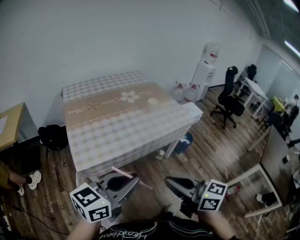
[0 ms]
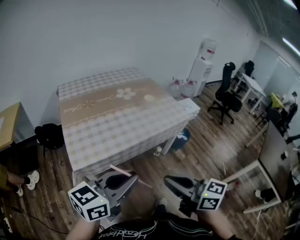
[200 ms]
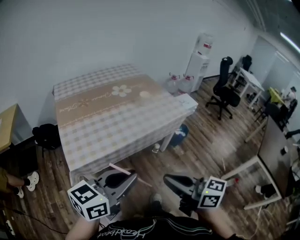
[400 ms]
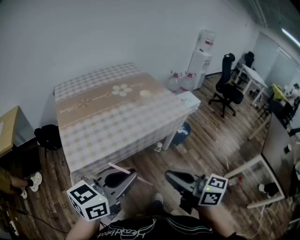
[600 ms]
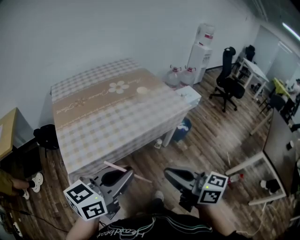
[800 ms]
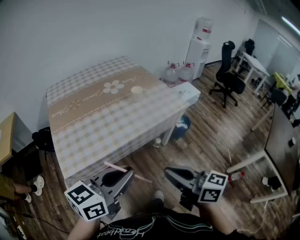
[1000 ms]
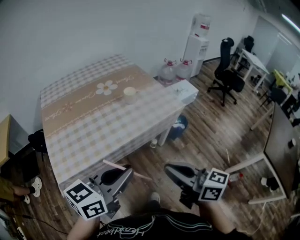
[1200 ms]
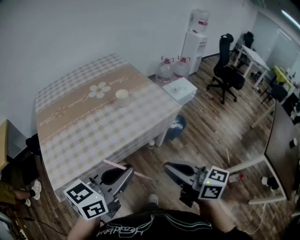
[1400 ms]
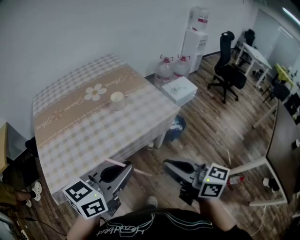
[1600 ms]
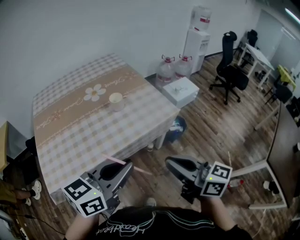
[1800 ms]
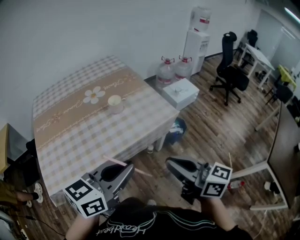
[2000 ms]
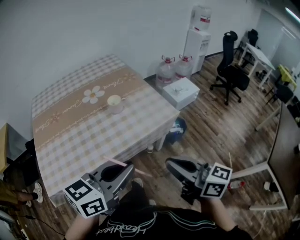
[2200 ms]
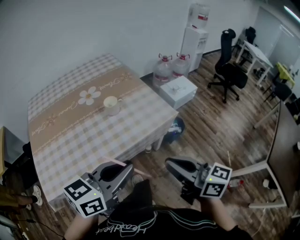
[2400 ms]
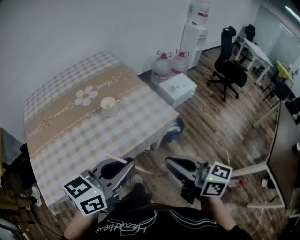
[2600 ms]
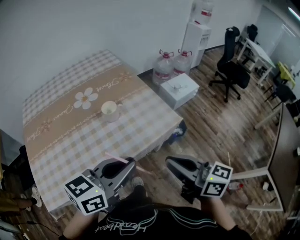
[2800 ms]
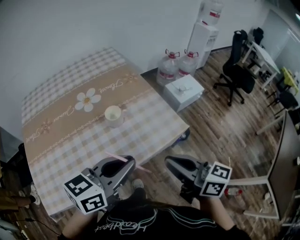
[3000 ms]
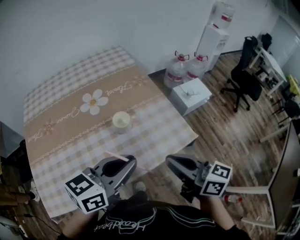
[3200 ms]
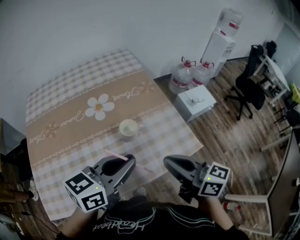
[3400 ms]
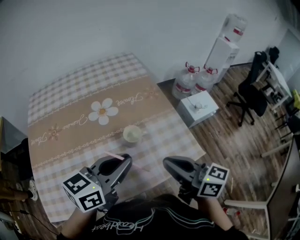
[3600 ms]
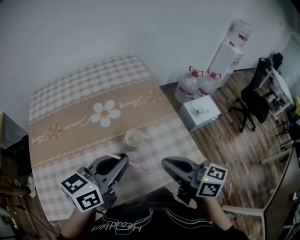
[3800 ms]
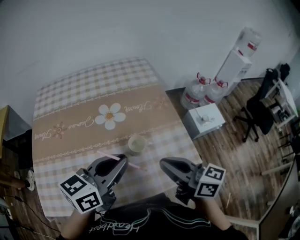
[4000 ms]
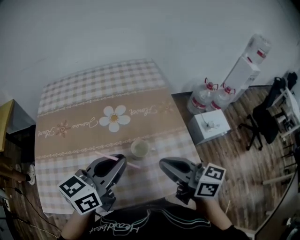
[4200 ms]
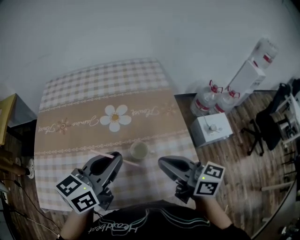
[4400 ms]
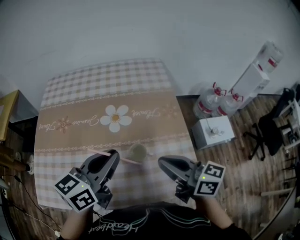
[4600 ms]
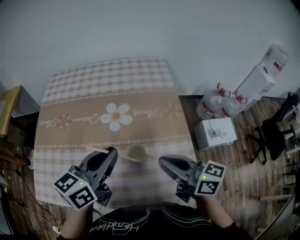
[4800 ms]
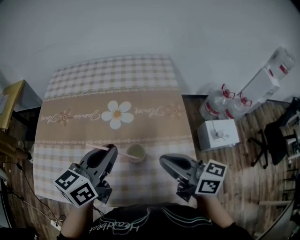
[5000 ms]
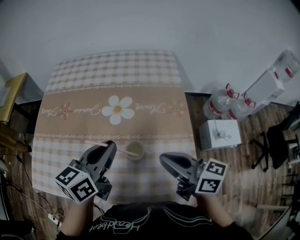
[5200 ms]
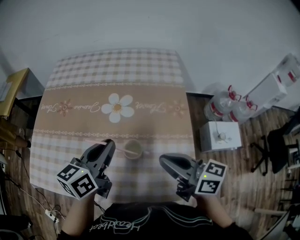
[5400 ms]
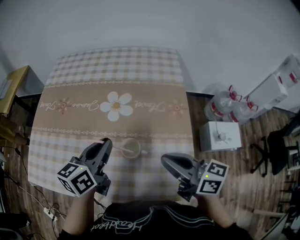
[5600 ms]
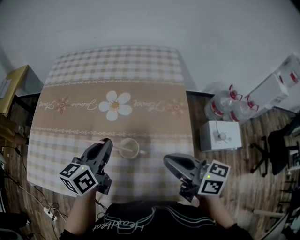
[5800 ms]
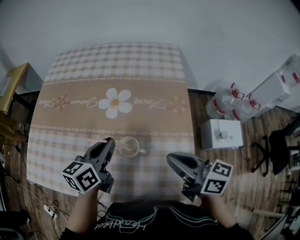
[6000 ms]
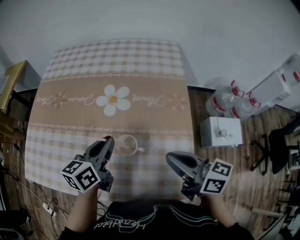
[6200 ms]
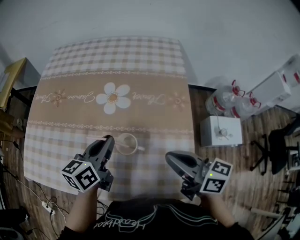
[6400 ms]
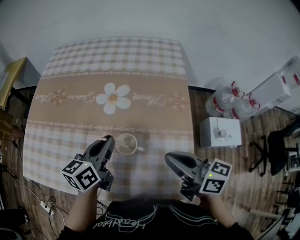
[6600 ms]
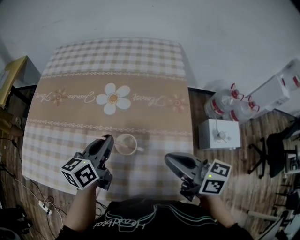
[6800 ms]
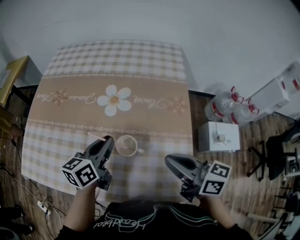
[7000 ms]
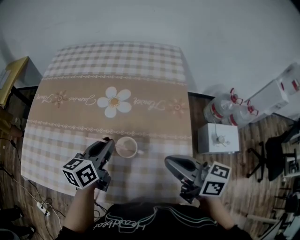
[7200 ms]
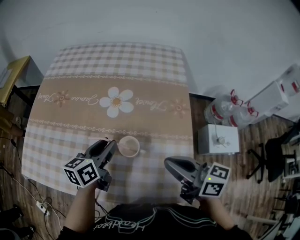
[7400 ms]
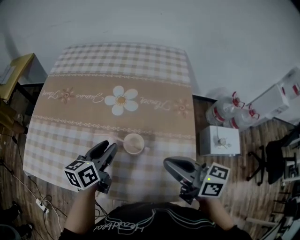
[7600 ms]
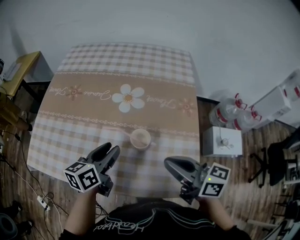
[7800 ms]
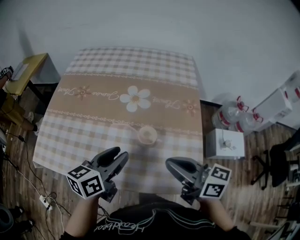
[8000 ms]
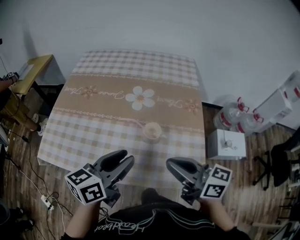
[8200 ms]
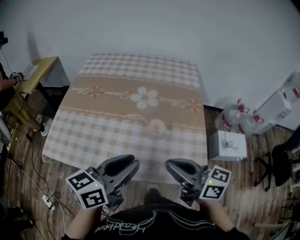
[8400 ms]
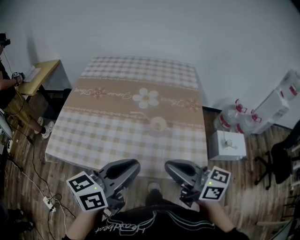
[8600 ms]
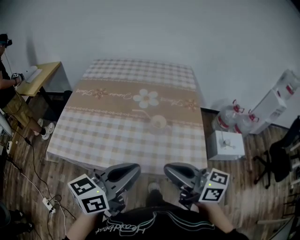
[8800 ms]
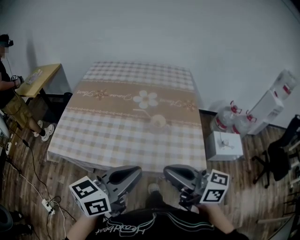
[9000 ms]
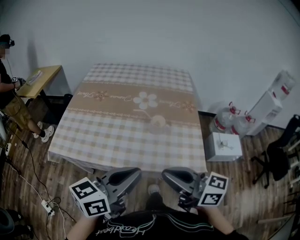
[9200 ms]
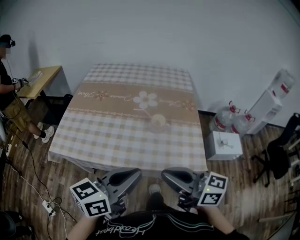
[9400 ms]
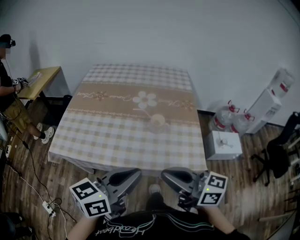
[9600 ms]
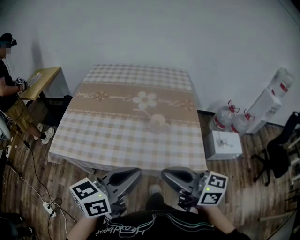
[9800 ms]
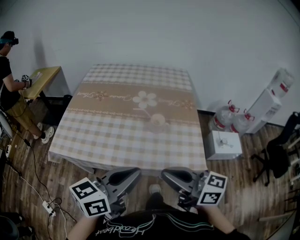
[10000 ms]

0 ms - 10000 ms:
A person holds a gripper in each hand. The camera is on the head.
0 ms - 1400 ms: The right gripper heads to the right and forward, covering roughly 25 cm. Meanwhile the left gripper heads forward and to the right, covering about 25 cm.
1400 ms - 2800 ms: Both grippers travel together forward, some 20 cm.
2800 ms - 4200 ms: The right gripper goes some 25 cm forward, and changes its angle by roughly 20 degrees. Meanwhile the left gripper is displaced forward and to the left by about 25 cm, and changes its angle by roughly 30 degrees.
4200 ms - 5800 ms: The right gripper heads to the right, downward and forward, covering roughly 10 cm. Meanwhile the left gripper moves downward and forward, roughly 15 cm, and changes its angle by approximately 30 degrees.
5800 ms - 7200 ms: The left gripper moves downward, roughly 5 cm.
7200 ms - 8600 ms: The right gripper goes approximately 25 cm backward, to the left and upward. The left gripper shifts approximately 30 cm backward and upward, and opens, then closes again.
8600 ms - 10000 ms: The grippers both shift backward by approximately 10 cm.

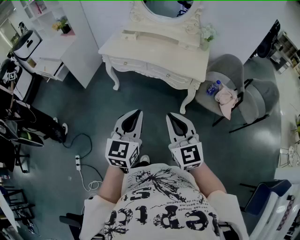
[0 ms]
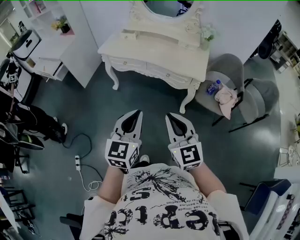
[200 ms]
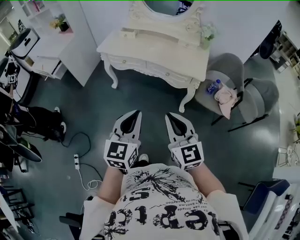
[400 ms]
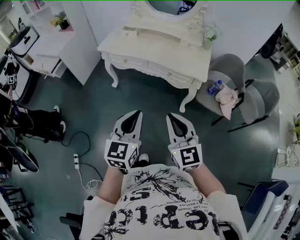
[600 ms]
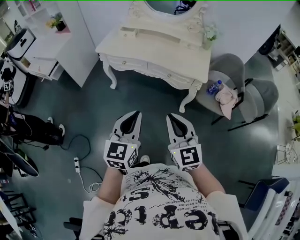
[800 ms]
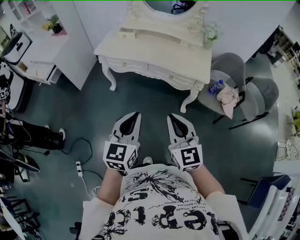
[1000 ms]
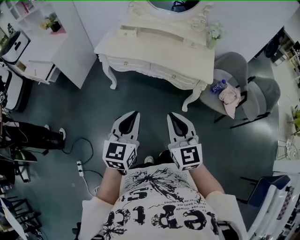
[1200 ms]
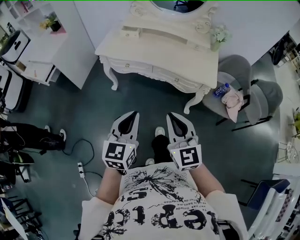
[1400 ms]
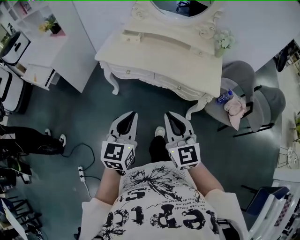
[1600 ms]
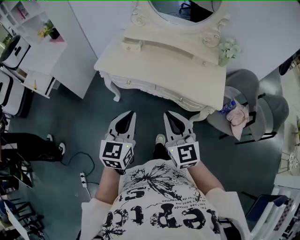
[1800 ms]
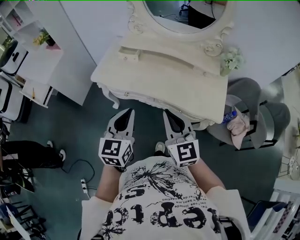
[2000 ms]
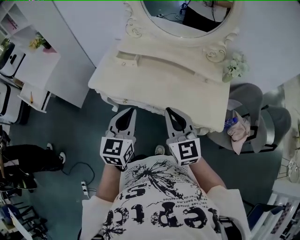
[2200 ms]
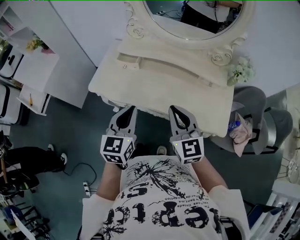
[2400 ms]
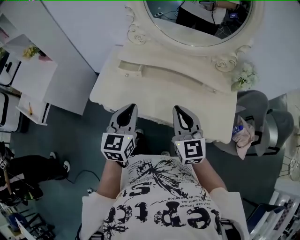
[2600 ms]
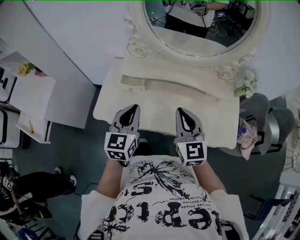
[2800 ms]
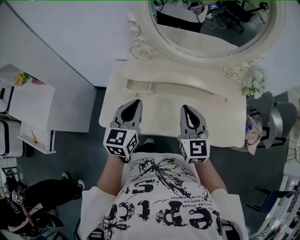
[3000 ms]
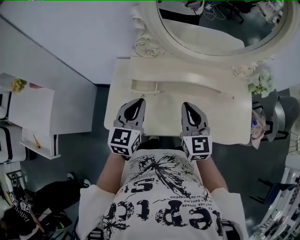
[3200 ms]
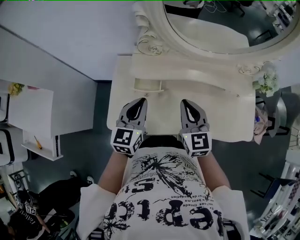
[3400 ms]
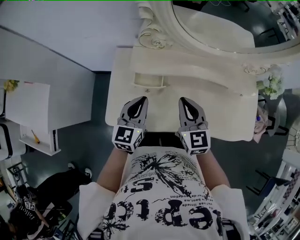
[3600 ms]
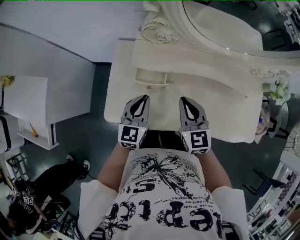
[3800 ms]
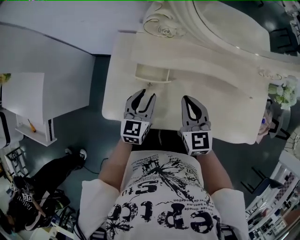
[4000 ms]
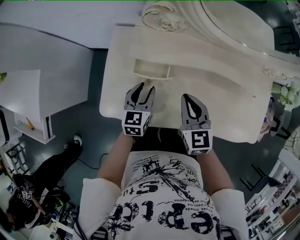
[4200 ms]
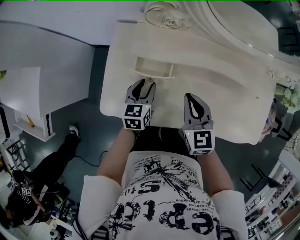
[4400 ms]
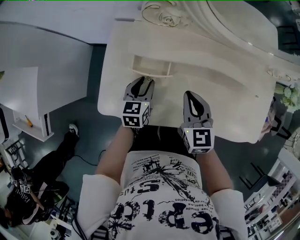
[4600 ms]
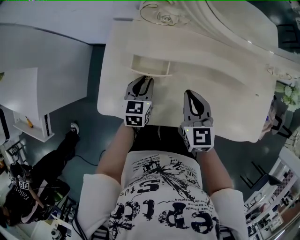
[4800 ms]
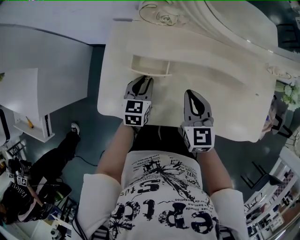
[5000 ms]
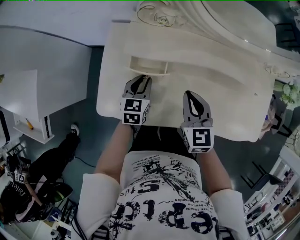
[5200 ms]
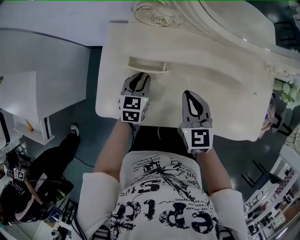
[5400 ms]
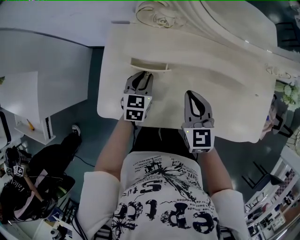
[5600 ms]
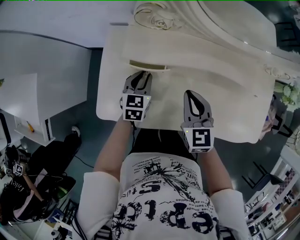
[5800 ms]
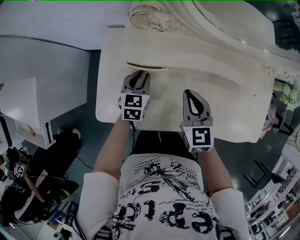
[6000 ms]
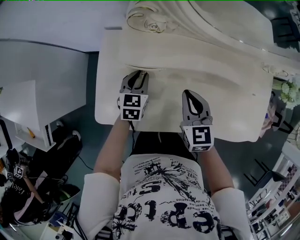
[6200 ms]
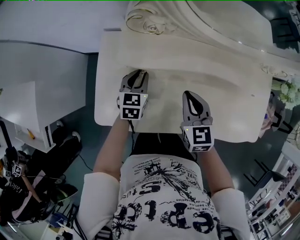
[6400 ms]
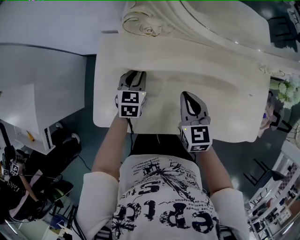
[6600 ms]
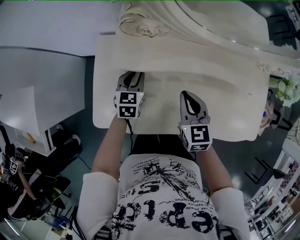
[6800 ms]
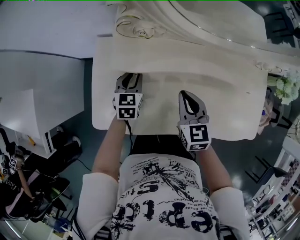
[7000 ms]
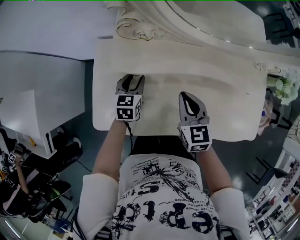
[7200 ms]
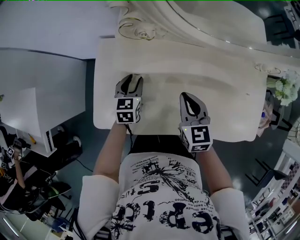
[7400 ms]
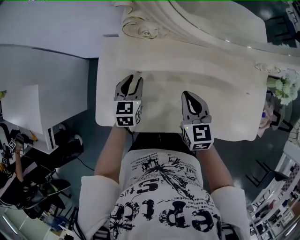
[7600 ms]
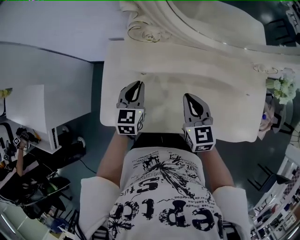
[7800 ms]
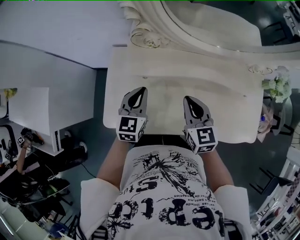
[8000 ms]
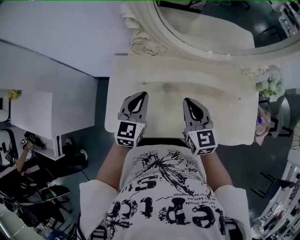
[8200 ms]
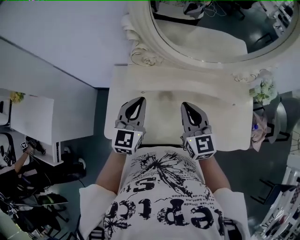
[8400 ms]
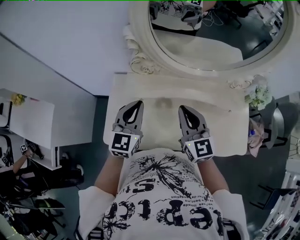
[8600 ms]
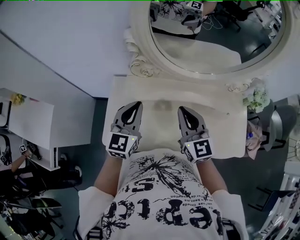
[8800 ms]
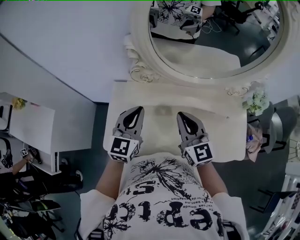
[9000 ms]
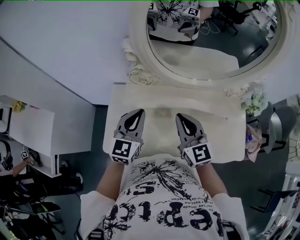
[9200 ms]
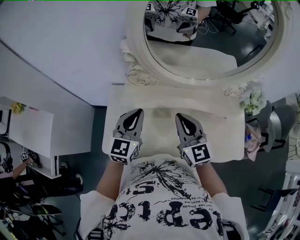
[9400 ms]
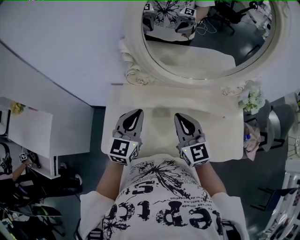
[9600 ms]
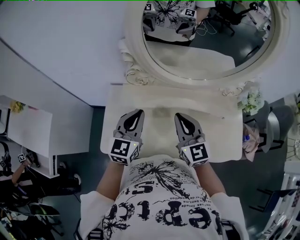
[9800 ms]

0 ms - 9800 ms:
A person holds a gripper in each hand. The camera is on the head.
0 ms - 1400 ms: The two grippers go some 15 cm forward and to the left.
1400 ms - 2800 ms: The pair of grippers is taken forward, roughly 50 cm.
2800 ms - 4200 ms: Both grippers move downward, forward and to the left, some 25 cm. The left gripper opens.
4200 ms - 5600 ms: The left gripper shifts by approximately 5 cm.
5600 ms - 7000 ms: The grippers make only small movements.
7000 ms - 8400 ms: The left gripper moves upward, about 25 cm, and swivels about 20 degrees. The right gripper heads upward, covering roughly 15 cm.
8400 ms - 9800 ms: The grippers move only a little.

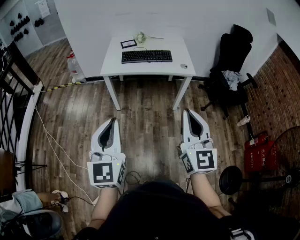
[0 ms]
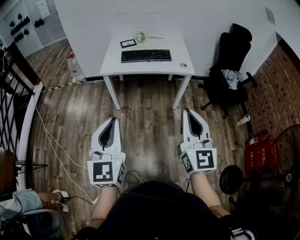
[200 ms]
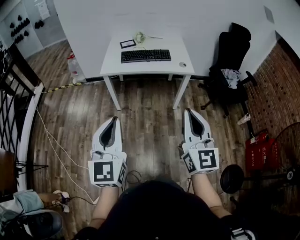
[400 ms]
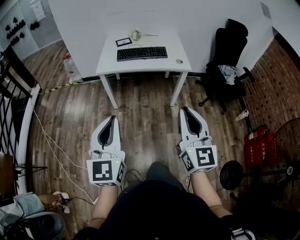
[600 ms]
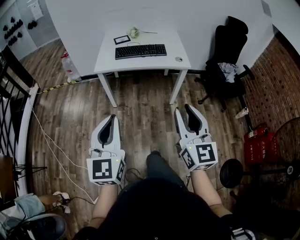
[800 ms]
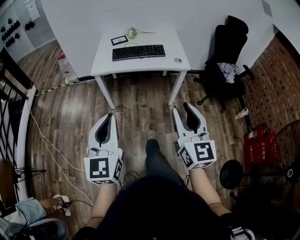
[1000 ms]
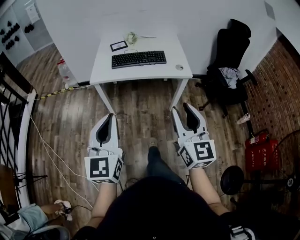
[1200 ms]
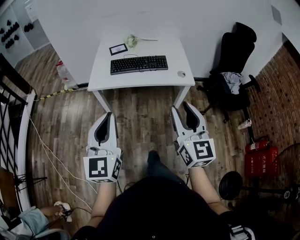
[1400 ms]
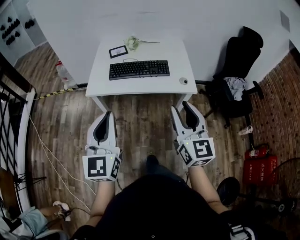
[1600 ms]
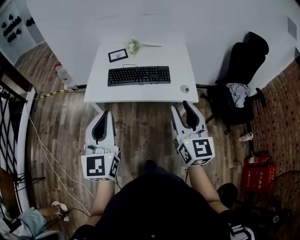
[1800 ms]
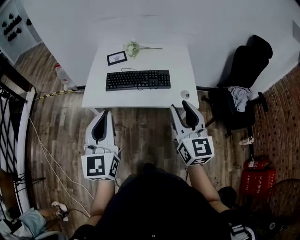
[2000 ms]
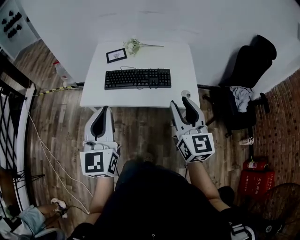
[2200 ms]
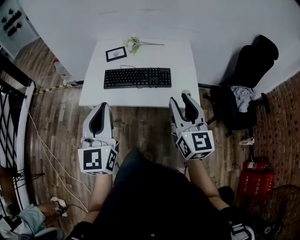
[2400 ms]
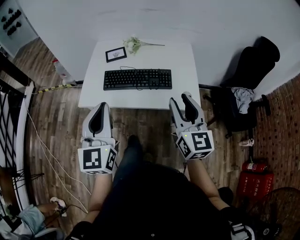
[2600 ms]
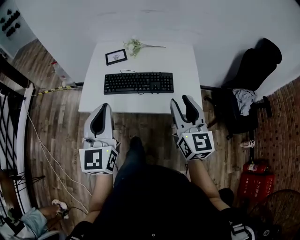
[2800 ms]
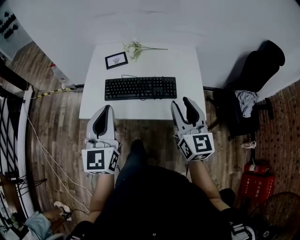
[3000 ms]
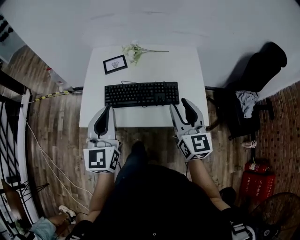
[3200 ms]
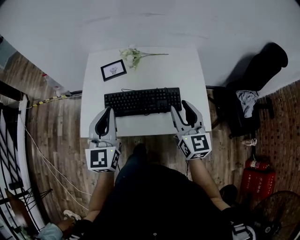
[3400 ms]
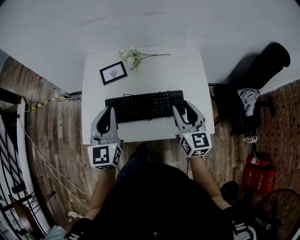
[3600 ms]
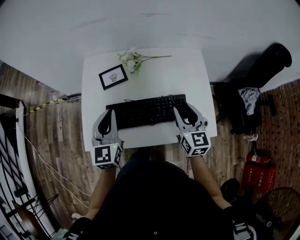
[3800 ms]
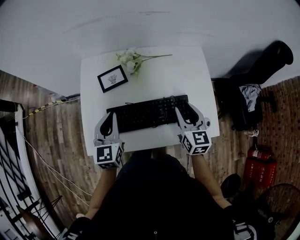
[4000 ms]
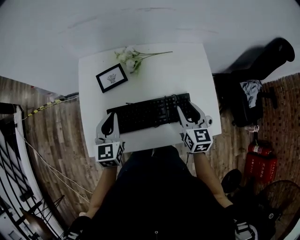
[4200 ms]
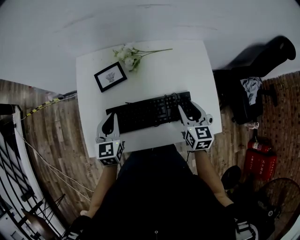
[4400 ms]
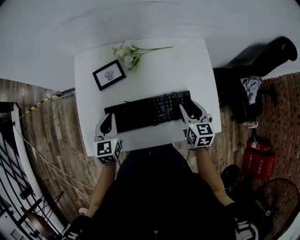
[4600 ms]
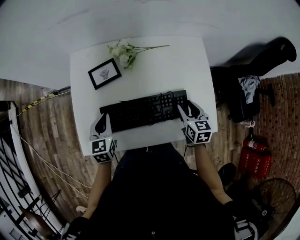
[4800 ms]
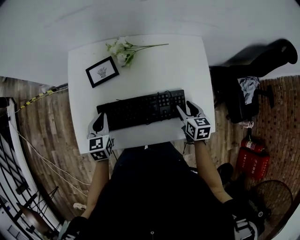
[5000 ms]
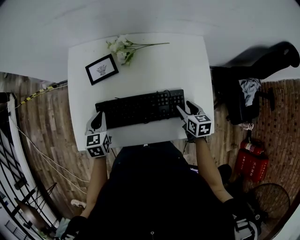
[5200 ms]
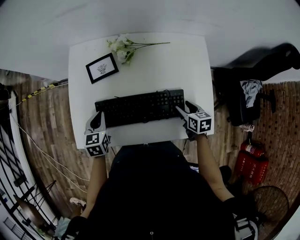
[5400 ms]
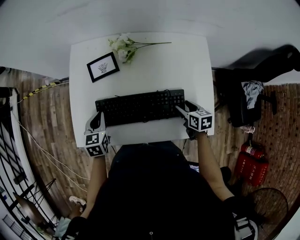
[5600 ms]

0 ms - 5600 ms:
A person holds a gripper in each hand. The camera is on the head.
0 ms - 1400 ms: Both grippers move forward, about 20 cm. The right gripper opens its fingers.
1400 ms - 2800 ms: Both grippers travel together forward, about 30 cm.
2800 ms - 4200 ms: The grippers both shift forward and downward by roughly 30 cm. The right gripper rotates about 20 degrees. Meanwhile the left gripper turns by some 20 degrees.
4200 ms - 5600 ms: The right gripper heads downward and to the right, covering about 15 cm, and rotates some 30 degrees. The left gripper goes about 10 cm downward, and turns by some 20 degrees.
